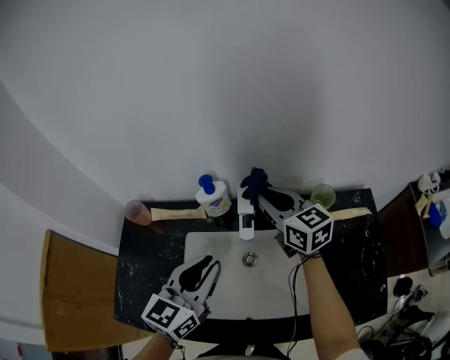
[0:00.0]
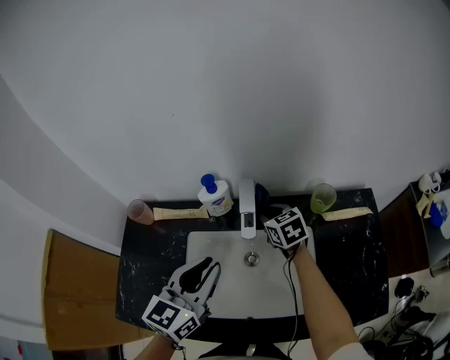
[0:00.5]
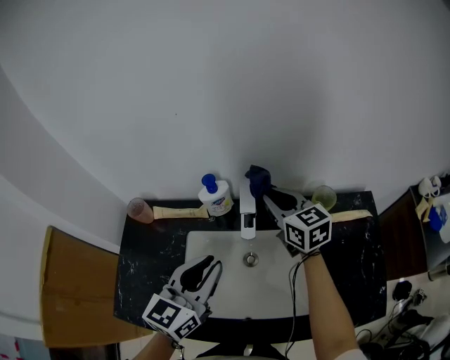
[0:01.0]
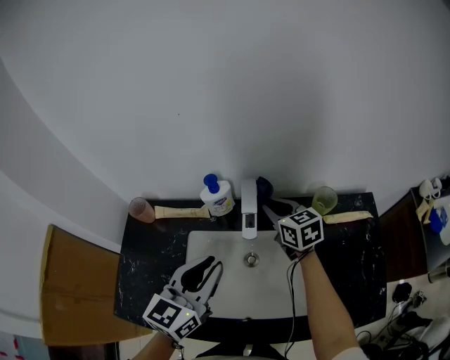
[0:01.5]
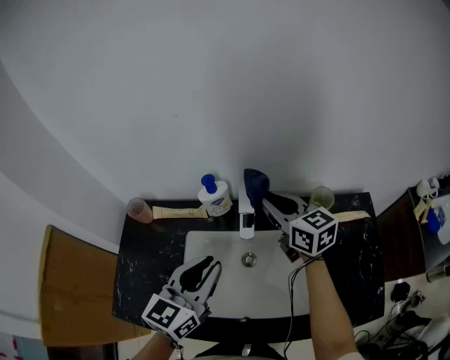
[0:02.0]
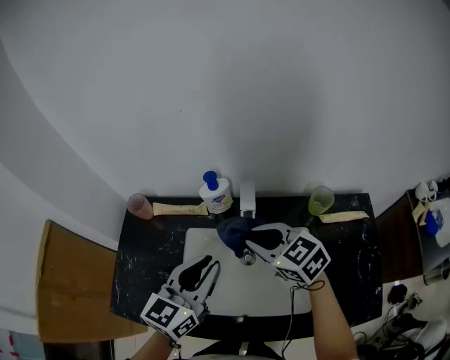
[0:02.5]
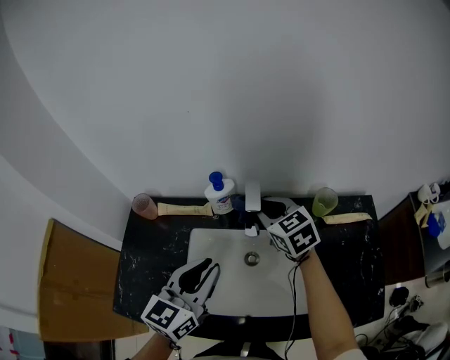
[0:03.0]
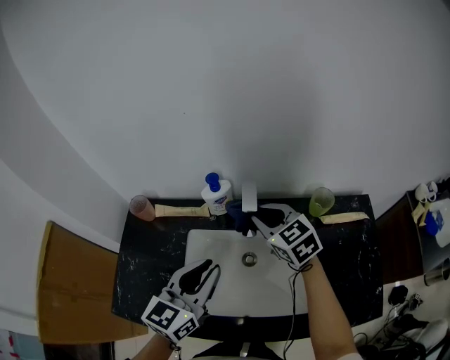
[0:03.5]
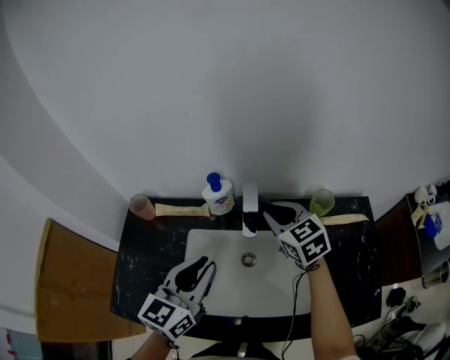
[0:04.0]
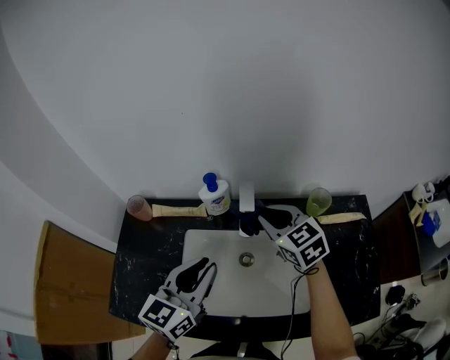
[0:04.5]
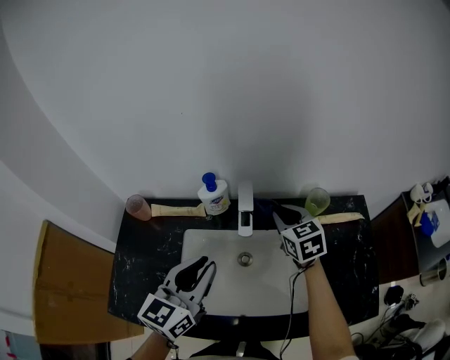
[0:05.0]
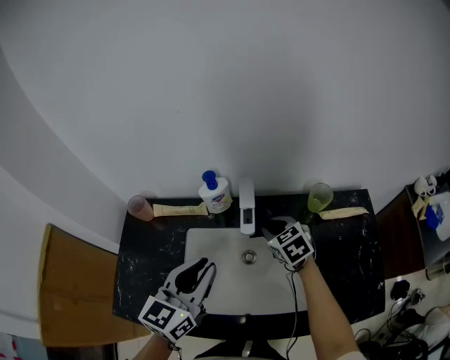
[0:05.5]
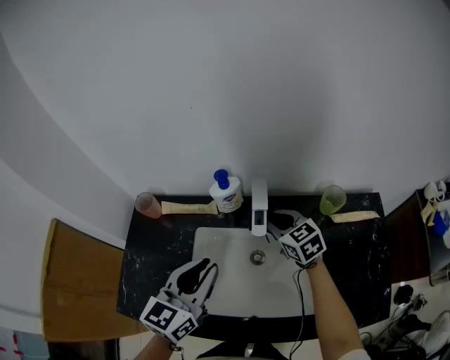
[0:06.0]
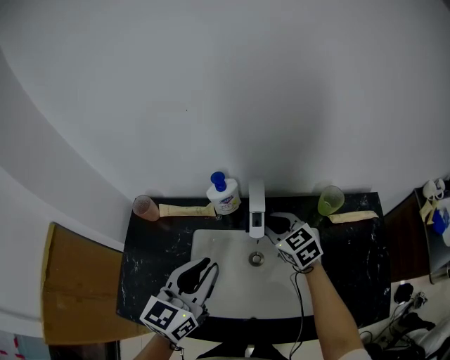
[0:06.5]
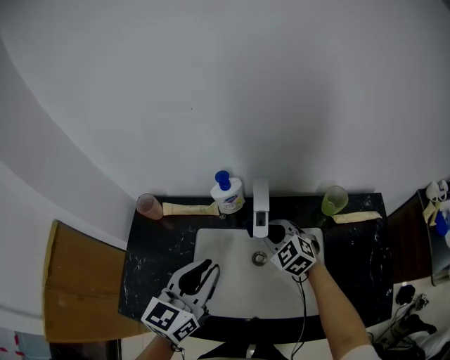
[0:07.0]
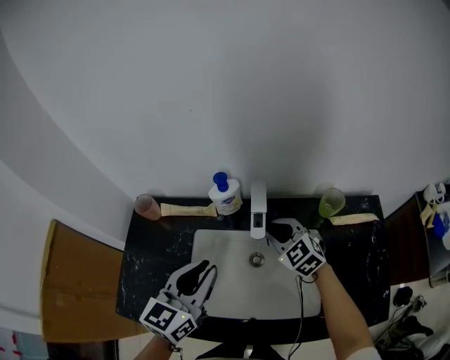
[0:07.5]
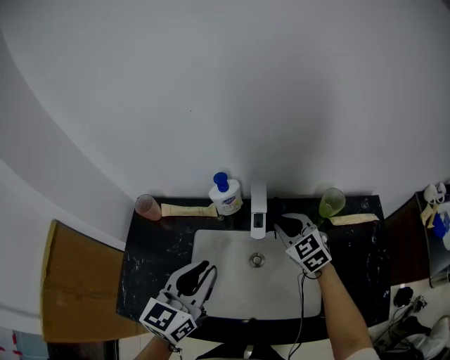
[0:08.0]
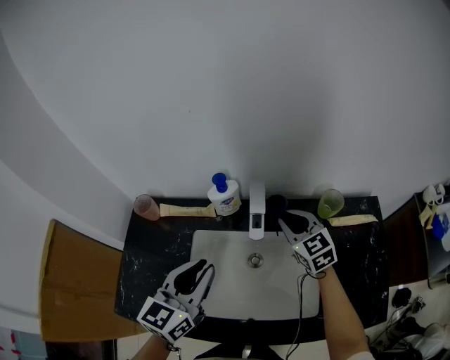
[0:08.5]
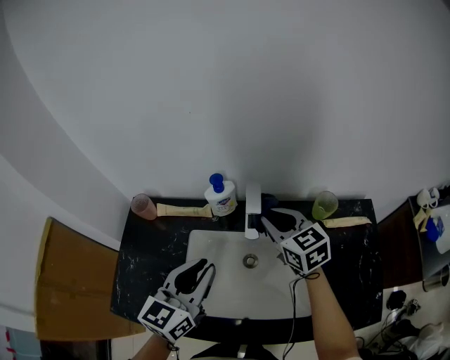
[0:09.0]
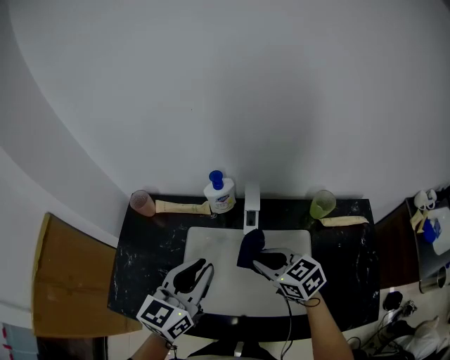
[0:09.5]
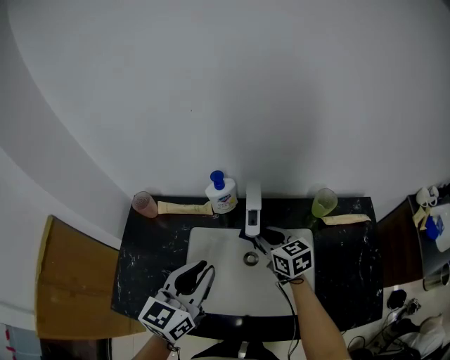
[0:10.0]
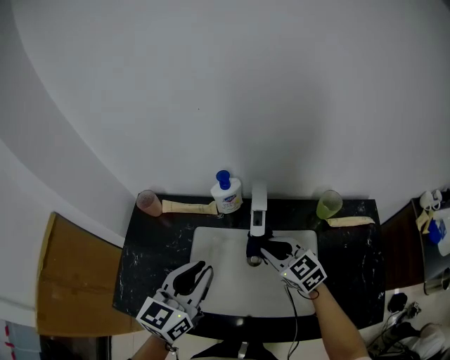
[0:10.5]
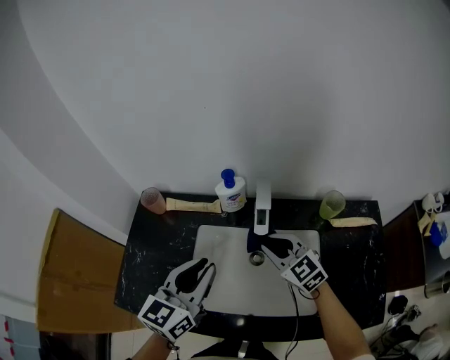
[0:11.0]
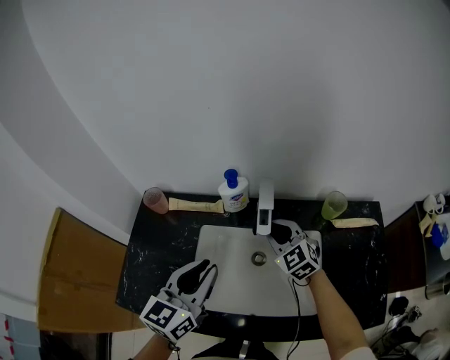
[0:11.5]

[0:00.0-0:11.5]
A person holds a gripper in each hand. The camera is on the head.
0:00.0 to 0:02.0: The right gripper goes up and down, some 15 cm each way, reversing 3 times.
0:02.0 to 0:04.0: The right gripper travels backward and back again, roughly 10 cm each way, and rotates about 30 degrees.
0:04.0 to 0:06.0: The right gripper heads downward, covering roughly 10 cm.
0:06.0 to 0:07.5: The right gripper turns by approximately 20 degrees.
0:07.5 to 0:09.5: The right gripper heads backward, covering about 10 cm, and changes its angle by some 30 degrees.
0:09.5 to 0:11.5: The right gripper moves forward and backward over about 10 cm, changing direction 2 times, and changes its angle by approximately 30 degrees.

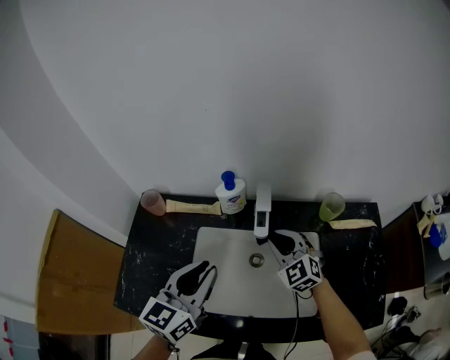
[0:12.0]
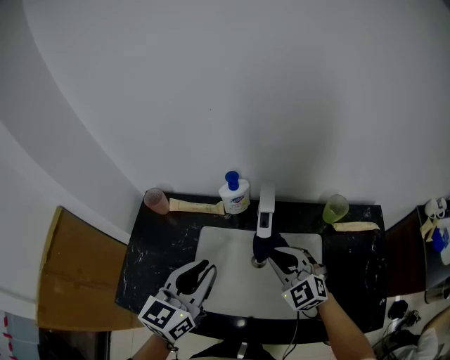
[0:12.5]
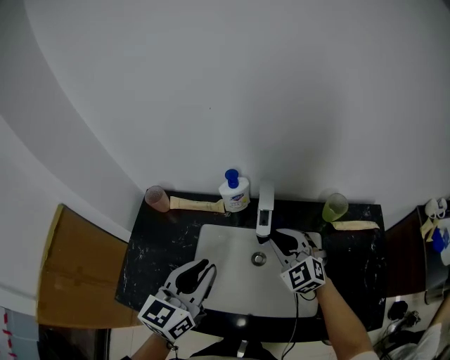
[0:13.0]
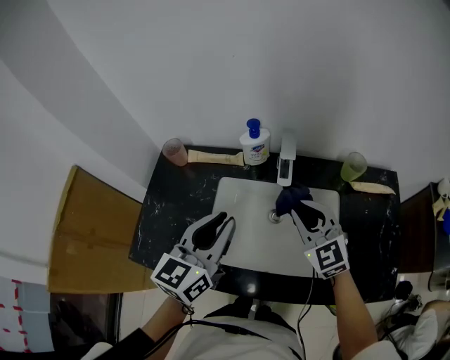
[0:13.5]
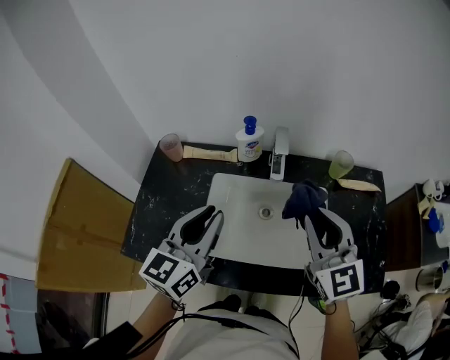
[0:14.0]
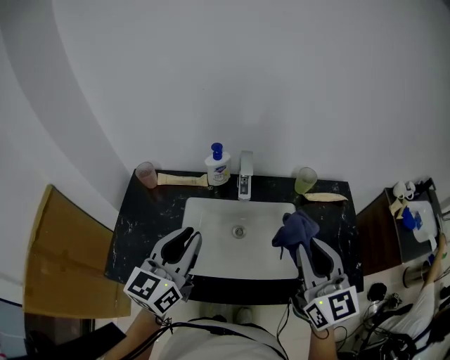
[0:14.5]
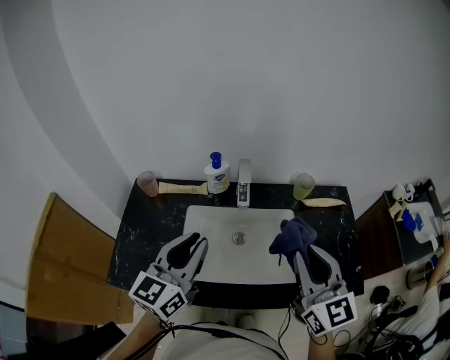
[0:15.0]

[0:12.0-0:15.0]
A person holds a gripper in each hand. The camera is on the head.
0:12.0 to 0:13.5: The right gripper goes forward and backward, about 10 cm each way, reversing 2 times.
0:13.5 to 0:15.0: The right gripper travels upward, backward and to the right by roughly 20 cm, and swivels roughly 30 degrees; the left gripper goes roughly 5 cm upward.

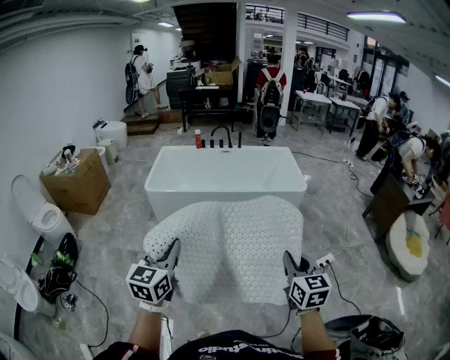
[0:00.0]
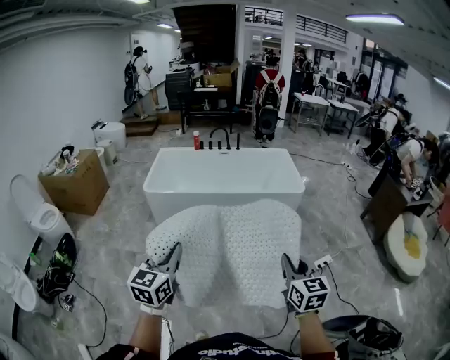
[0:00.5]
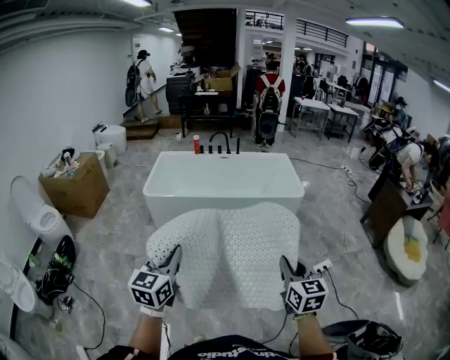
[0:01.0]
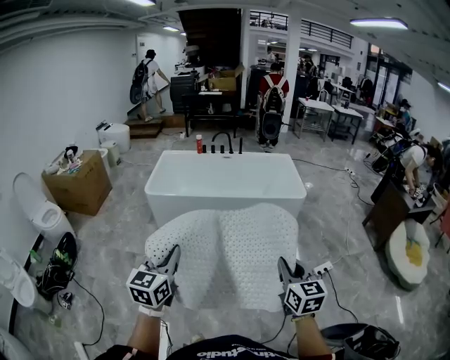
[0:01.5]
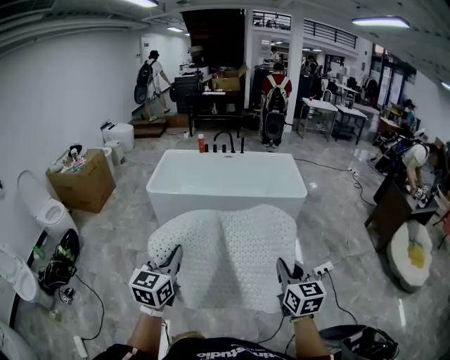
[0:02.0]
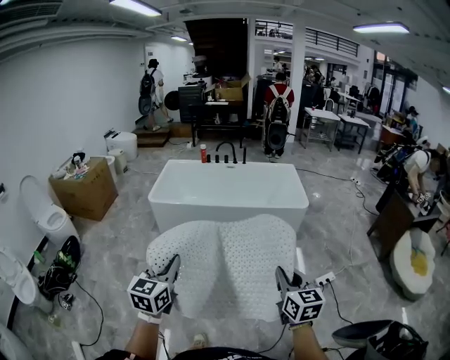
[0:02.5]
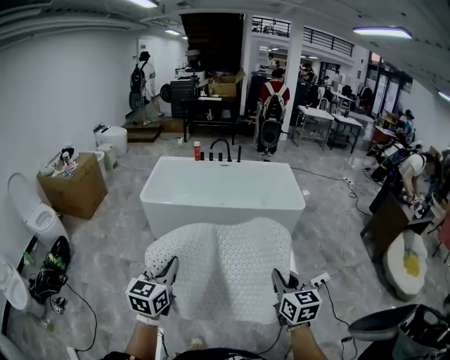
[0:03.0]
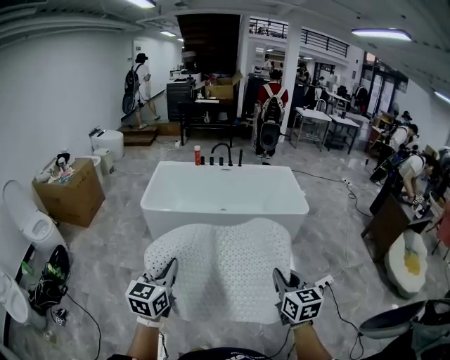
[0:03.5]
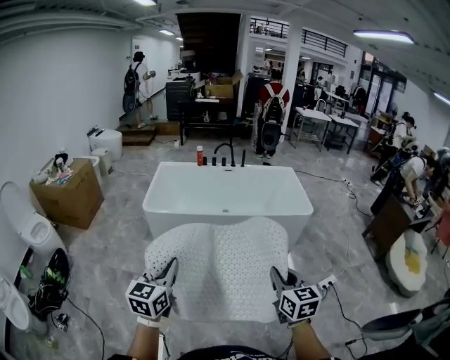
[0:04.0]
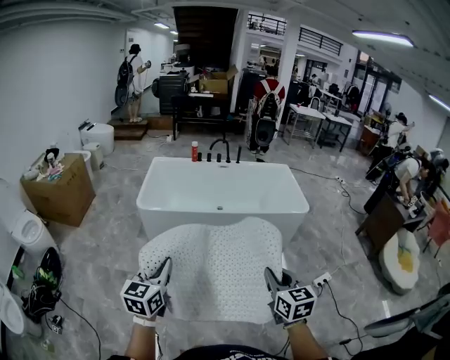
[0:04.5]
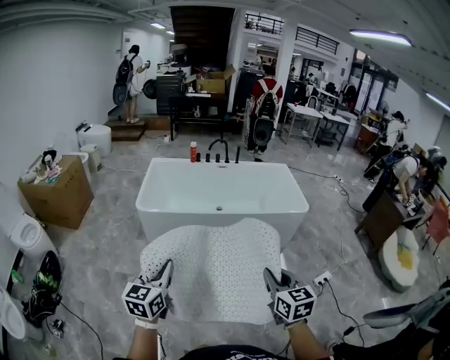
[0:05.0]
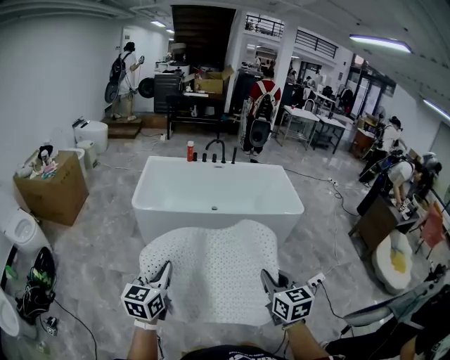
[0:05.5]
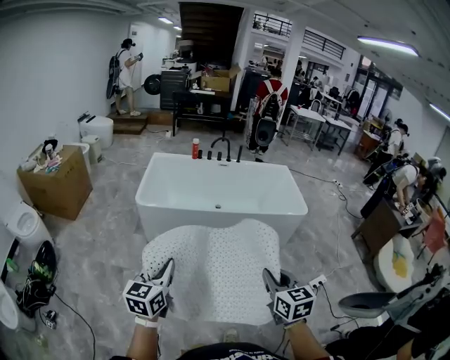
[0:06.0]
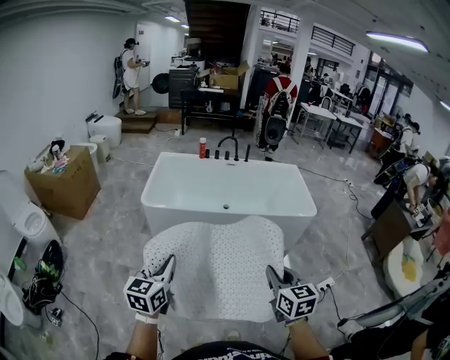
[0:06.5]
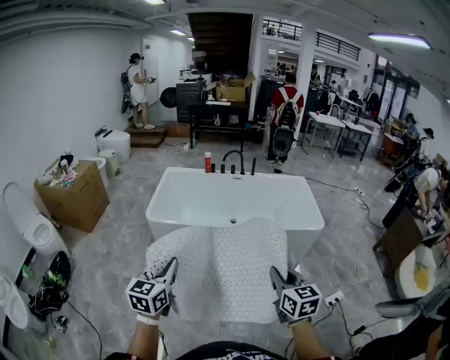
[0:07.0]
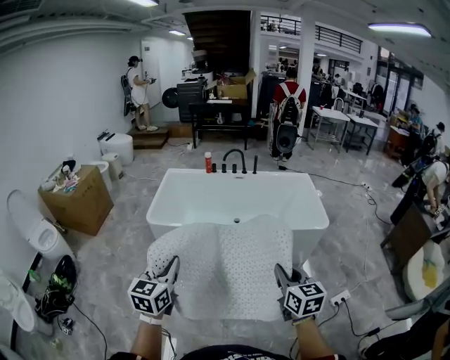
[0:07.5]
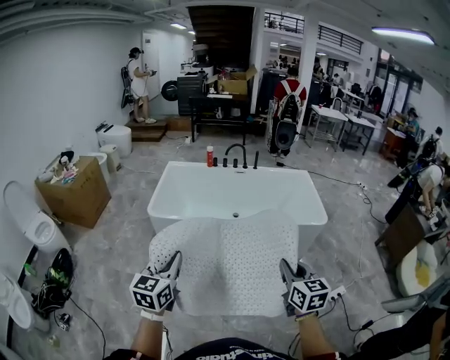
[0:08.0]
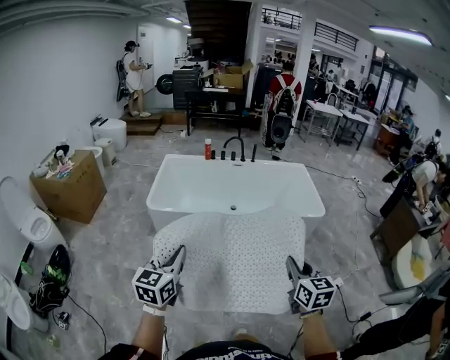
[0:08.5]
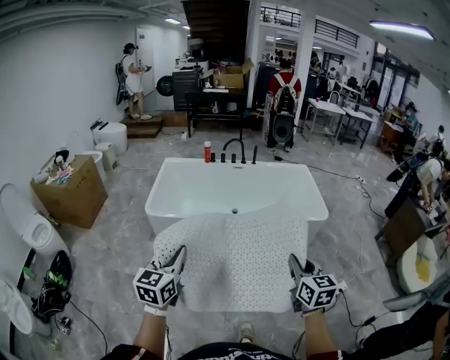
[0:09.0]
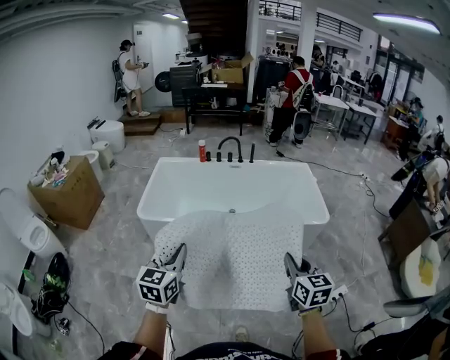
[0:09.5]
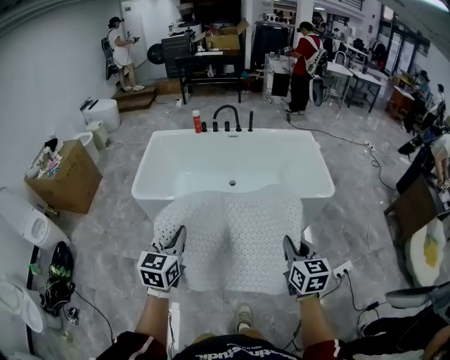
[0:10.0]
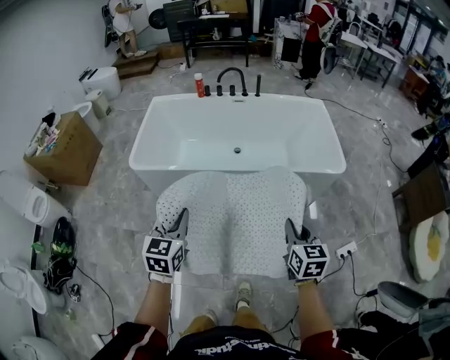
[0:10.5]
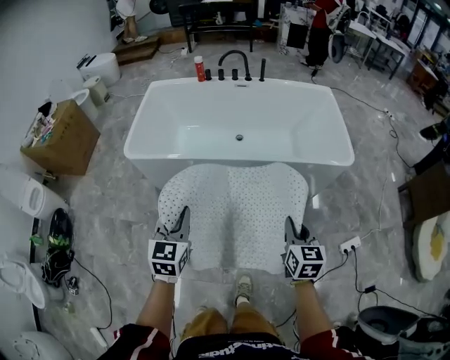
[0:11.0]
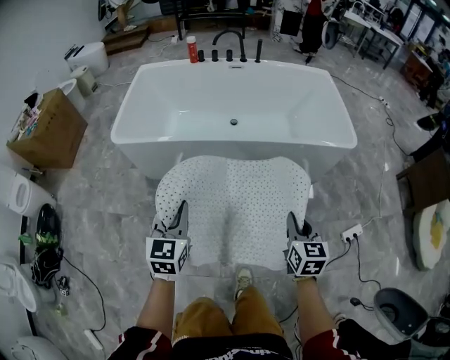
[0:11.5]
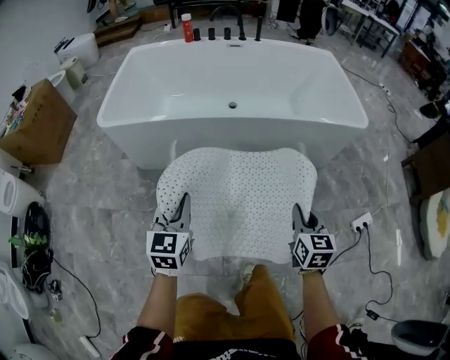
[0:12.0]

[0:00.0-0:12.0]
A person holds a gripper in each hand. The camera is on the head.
0:00.0 to 0:02.0: The left gripper goes about 5 cm to the right.
0:02.0 to 0:04.0: Both grippers move to the left and forward, roughly 20 cm.
0:04.0 to 0:06.0: The grippers both shift to the left by approximately 5 cm.
0:06.0 to 0:08.0: Both grippers travel together forward and to the right, approximately 15 cm.
0:08.0 to 0:10.0: Both grippers travel together forward, to the right and downward, roughly 20 cm.
0:10.0 to 0:12.0: Both grippers travel together downward, roughly 35 cm.
